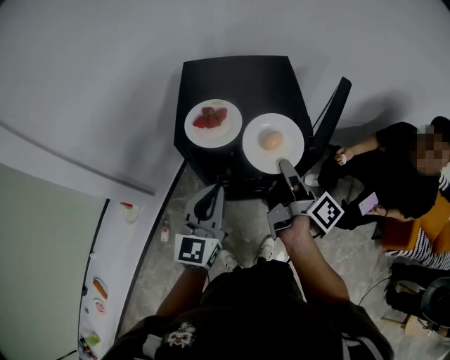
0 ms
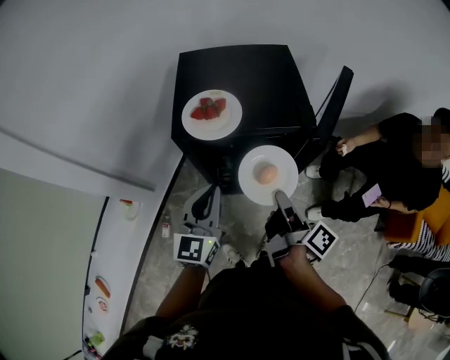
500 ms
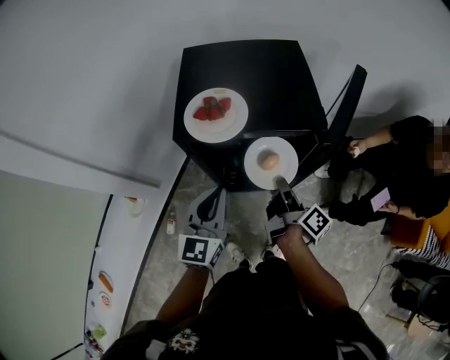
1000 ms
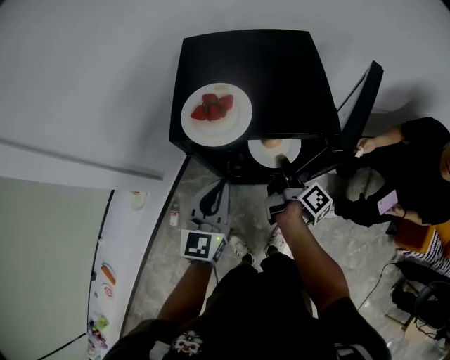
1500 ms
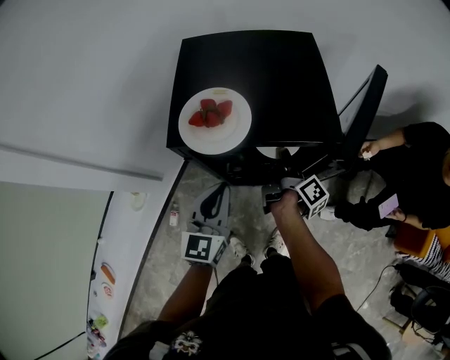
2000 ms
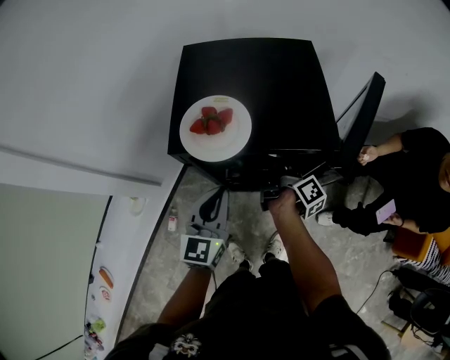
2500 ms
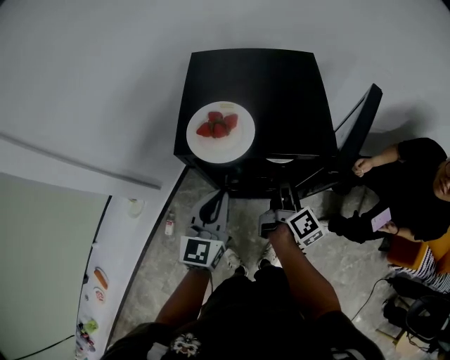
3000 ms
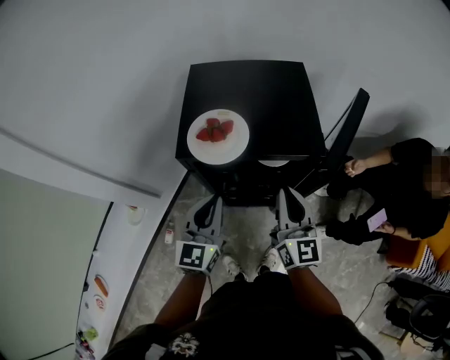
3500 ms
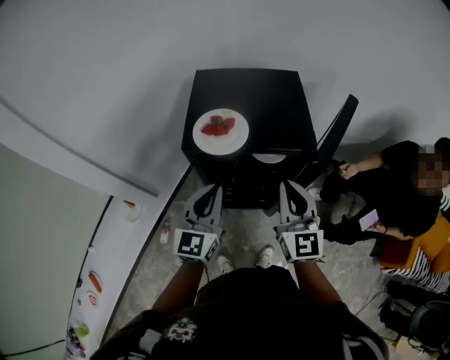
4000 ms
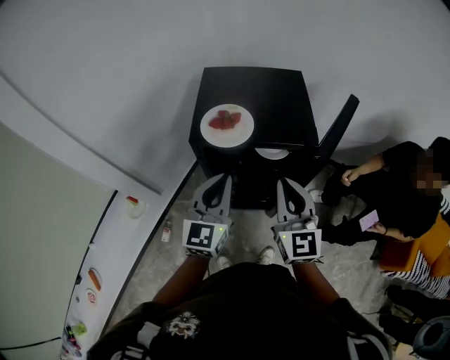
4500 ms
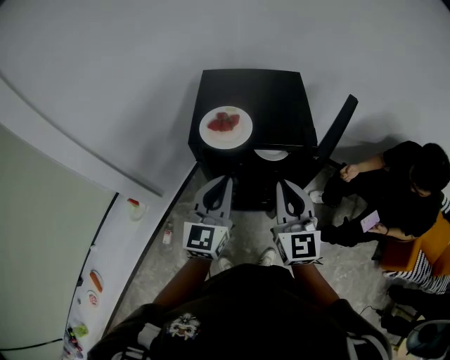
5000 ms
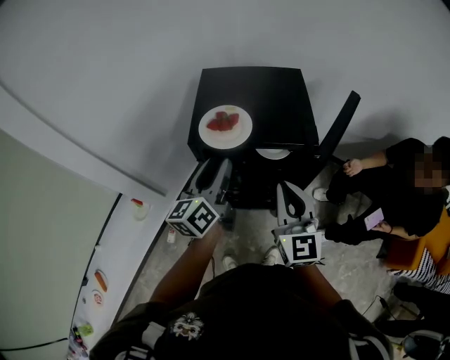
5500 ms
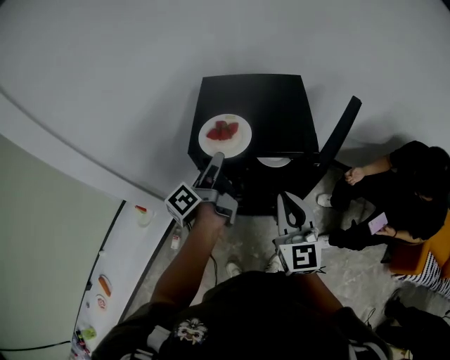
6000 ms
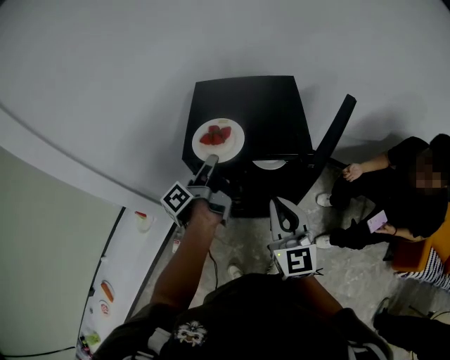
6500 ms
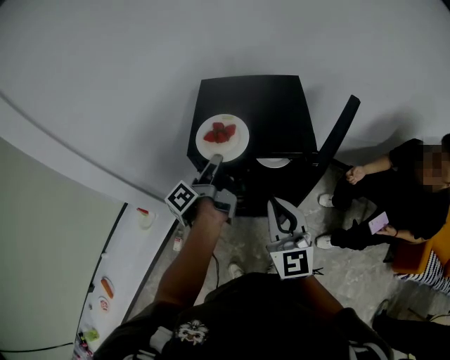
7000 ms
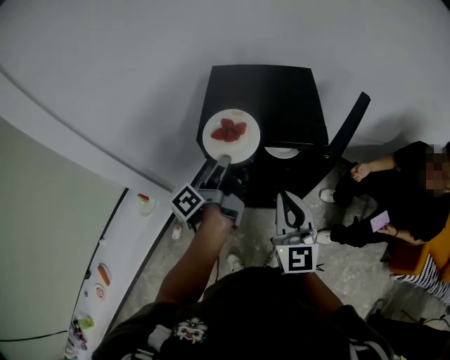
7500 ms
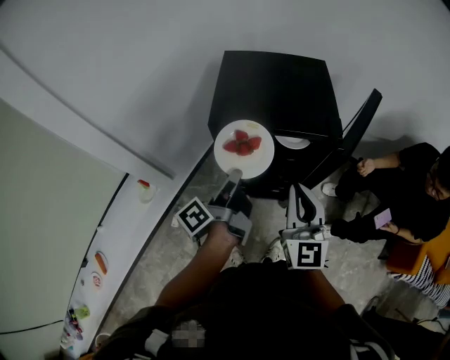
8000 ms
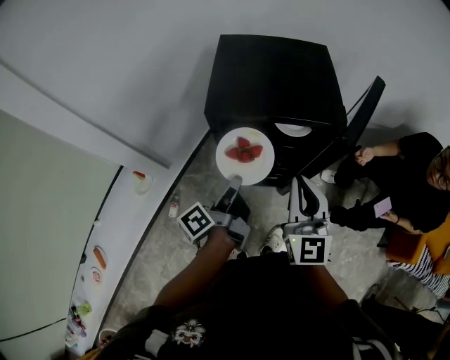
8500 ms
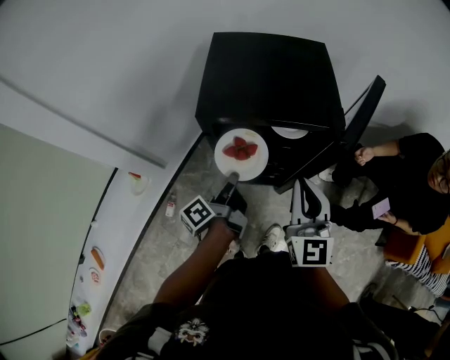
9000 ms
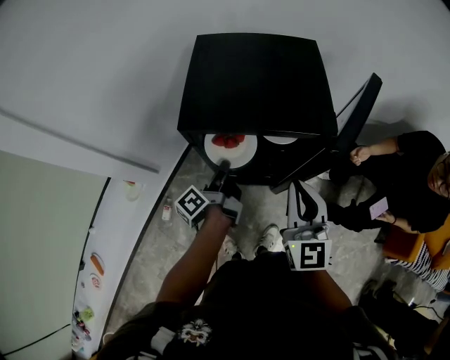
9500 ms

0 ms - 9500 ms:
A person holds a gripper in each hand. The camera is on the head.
0 ms - 2000 ms: The left gripper is displaced downward by approximately 10 cm, while the right gripper heads downward and forward, covering some 20 cm.
2000 ms - 4000 ms: The right gripper shifts about 25 cm upward and backward, rotates around the line of its fingers by about 90 degrees, counterclockwise from behind, and opens and closes again. Meanwhile the left gripper travels upward by some 10 cm.
4000 ms - 5500 ms: The left gripper shifts by some 5 cm, turns by roughly 30 degrees, and opens its fingers.
5500 ms - 7500 ms: The left gripper moves some 5 cm, twists approximately 50 degrees counterclockwise, seen from behind, and closes up.
7500 ms - 9500 ms: The left gripper heads downward, covering about 15 cm.

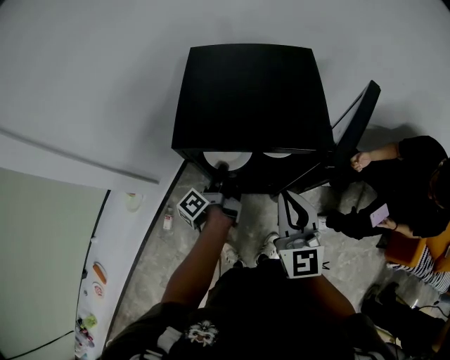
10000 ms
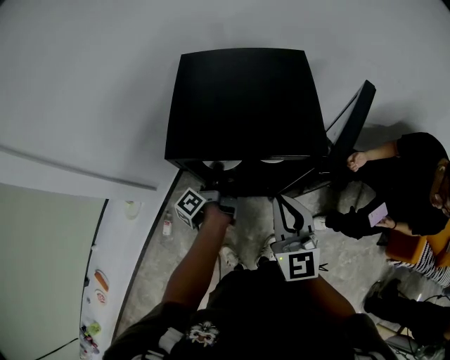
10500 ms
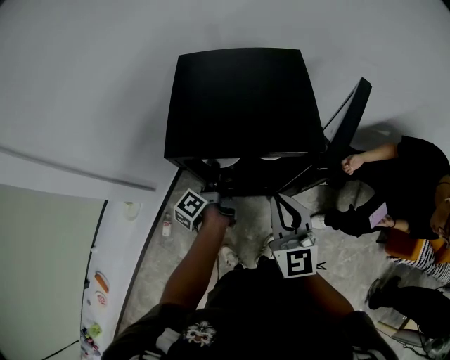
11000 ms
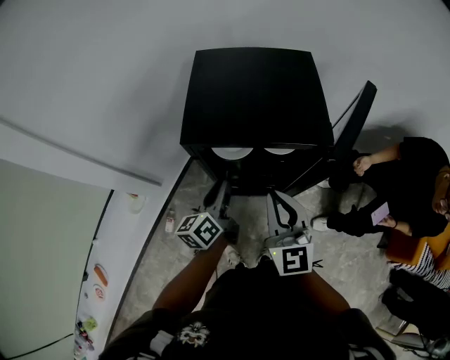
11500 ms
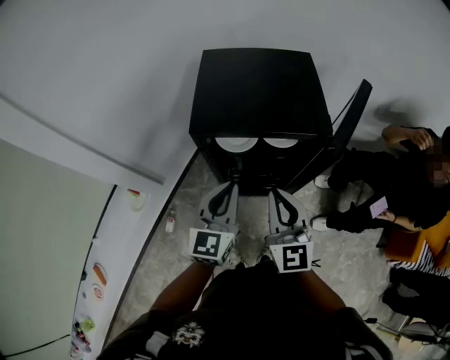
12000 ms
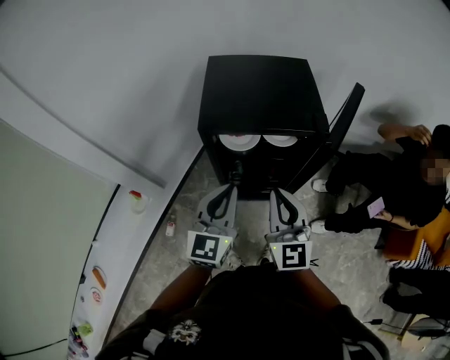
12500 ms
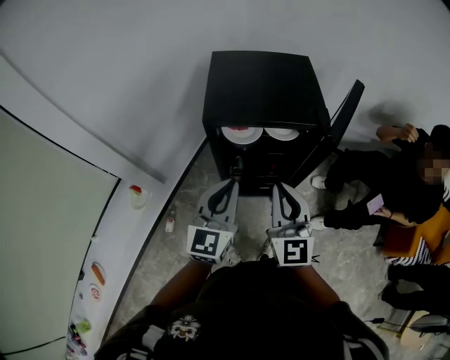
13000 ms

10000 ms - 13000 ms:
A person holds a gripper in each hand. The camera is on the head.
10000 ms - 11500 ms: The left gripper shifts approximately 10 cm backward and upward, and twists some 50 degrees clockwise, seen from behind.
11500 ms - 13000 ms: The left gripper travels upward and backward by roughly 15 cm, and rotates around the line of its fingers by approximately 40 degrees, clockwise from behind, while the right gripper goes roughly 10 cm backward.

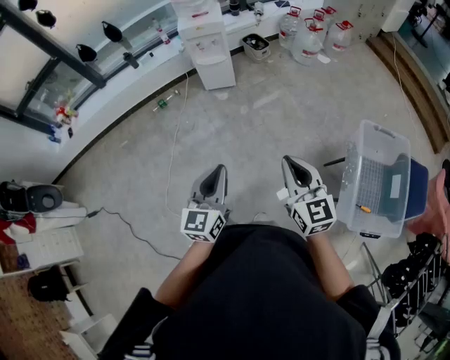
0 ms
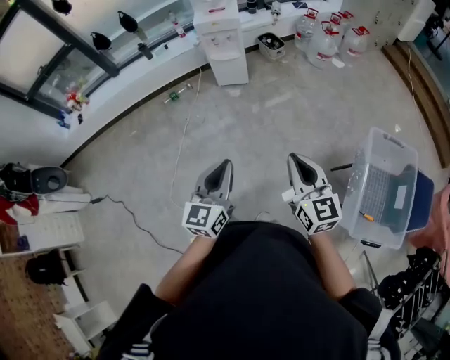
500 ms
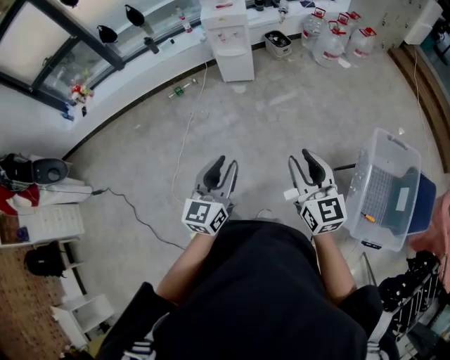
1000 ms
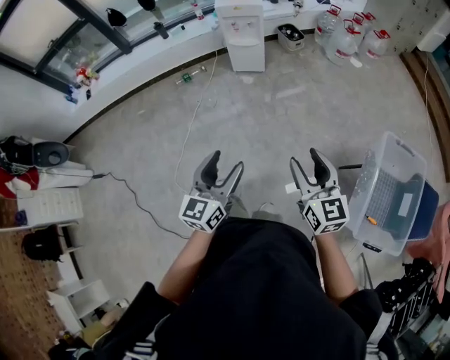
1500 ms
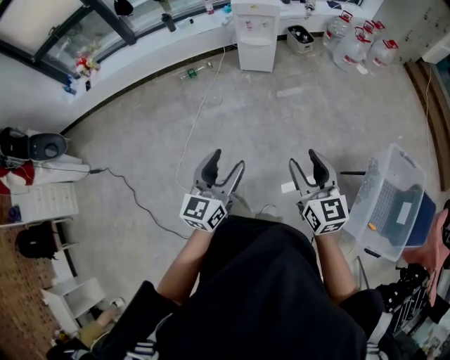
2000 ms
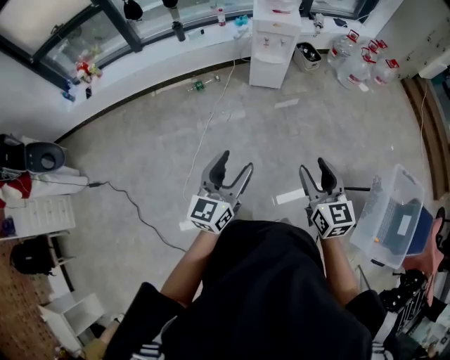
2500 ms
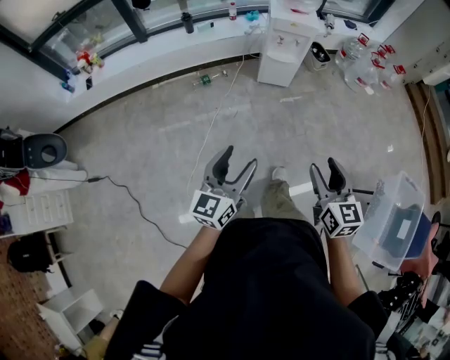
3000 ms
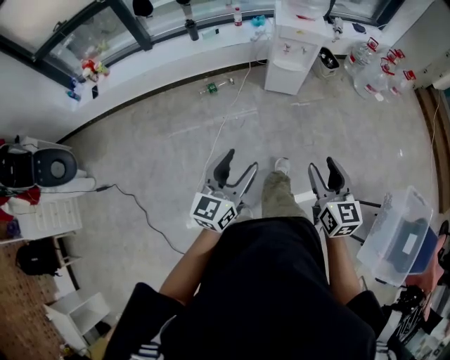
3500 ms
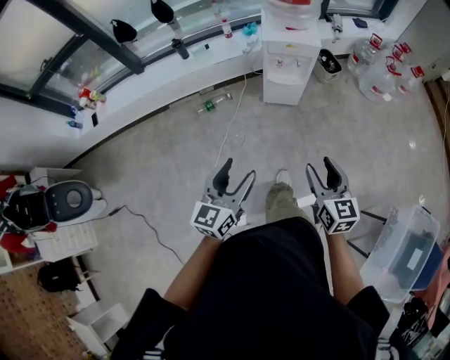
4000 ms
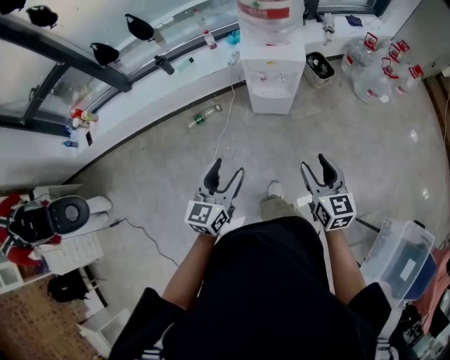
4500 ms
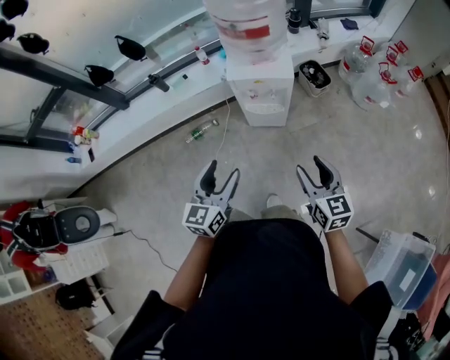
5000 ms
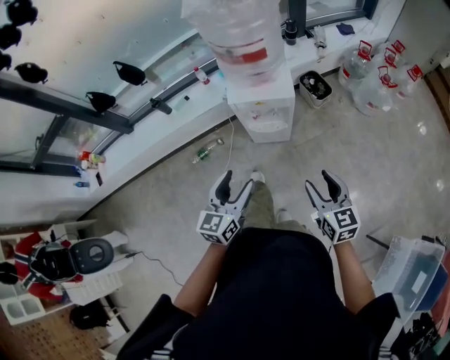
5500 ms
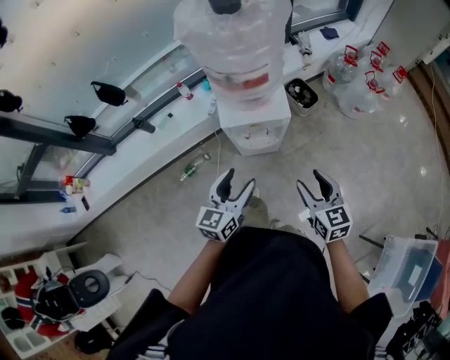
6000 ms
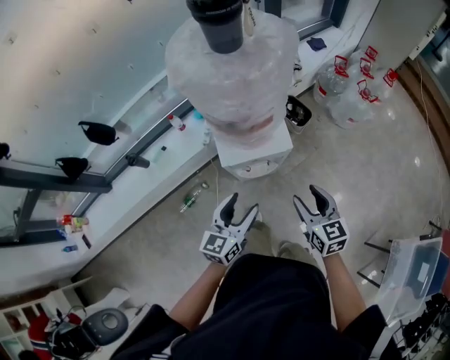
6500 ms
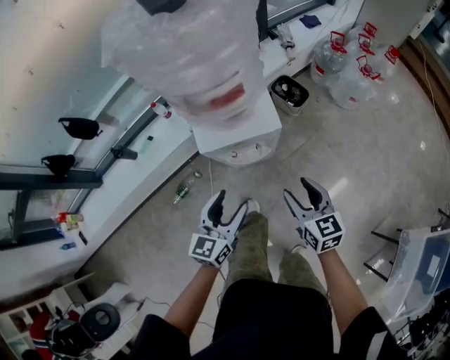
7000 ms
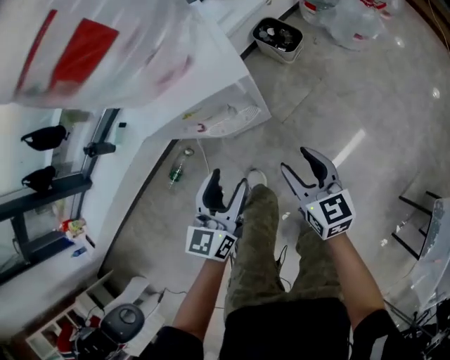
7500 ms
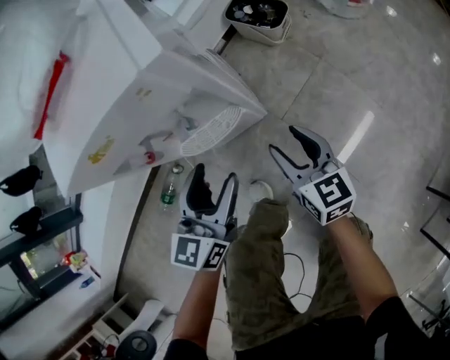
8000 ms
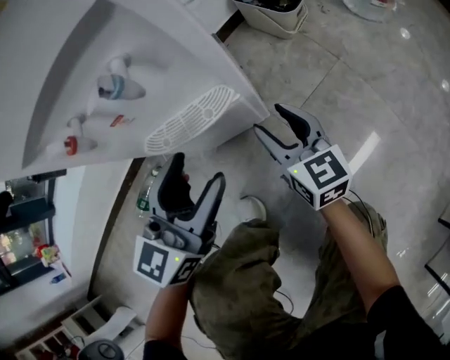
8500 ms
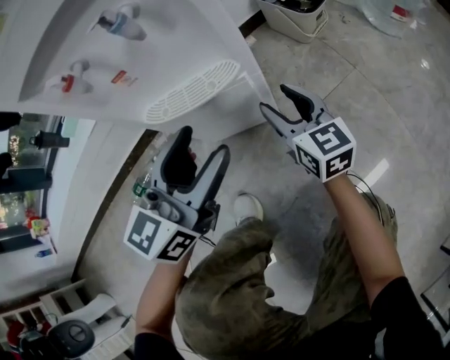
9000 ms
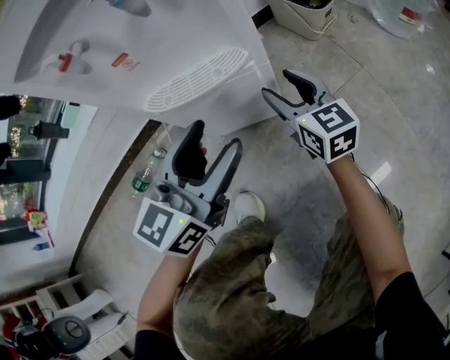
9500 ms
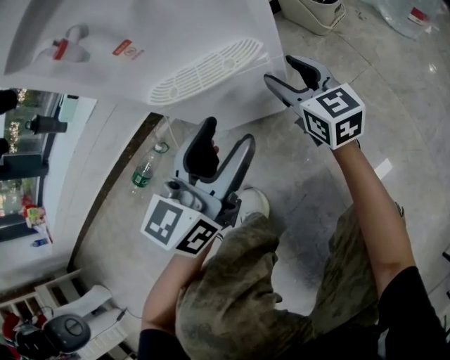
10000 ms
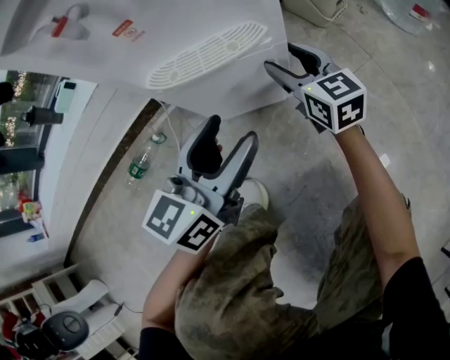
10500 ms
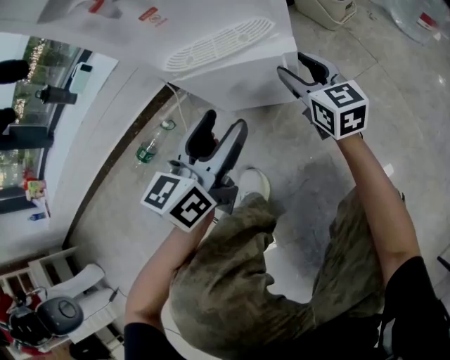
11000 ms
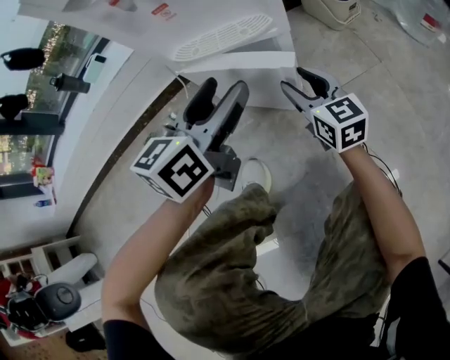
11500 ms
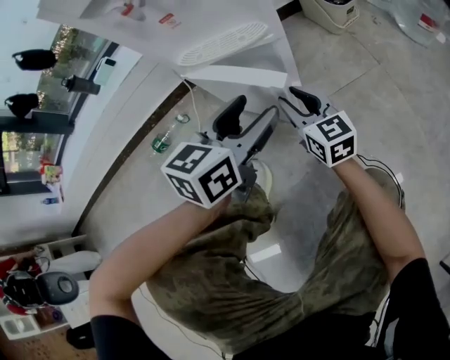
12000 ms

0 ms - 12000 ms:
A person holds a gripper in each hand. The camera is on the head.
0 ms - 2000 ms: The two grippers go roughly 10 cm to the left. The left gripper opens up; the right gripper opens.
2000 ms - 4000 ms: The left gripper is displaced forward and to the left by roughly 35 cm; the right gripper travels forward by some 35 cm.
4000 ms - 6000 ms: The two grippers go roughly 35 cm forward.
6000 ms - 8000 ms: Both grippers move downward, roughly 40 cm.
8000 ms - 10000 ms: The left gripper goes about 15 cm downward, while the right gripper moves downward and forward, some 20 cm, and rotates roughly 20 degrees.
10000 ms - 12000 ms: The left gripper goes some 5 cm backward; the right gripper heads backward, covering roughly 15 cm, and closes up.

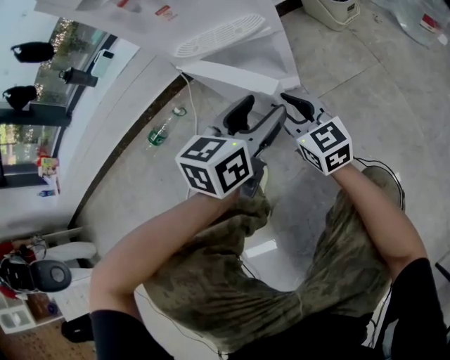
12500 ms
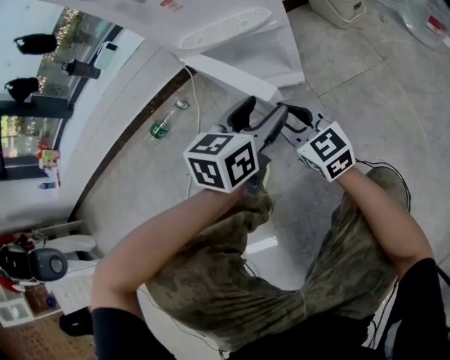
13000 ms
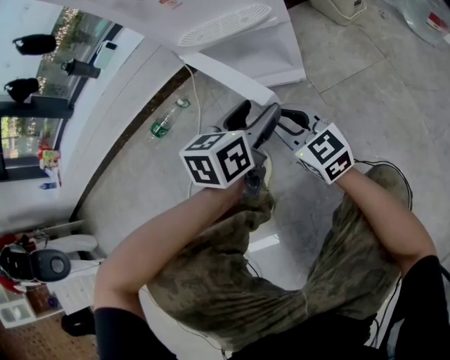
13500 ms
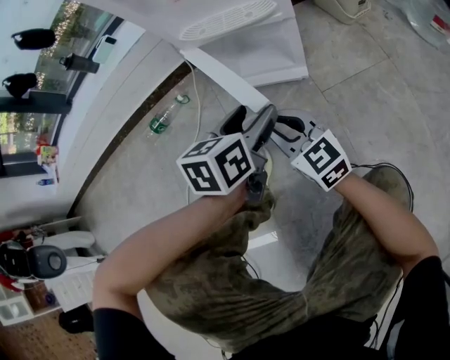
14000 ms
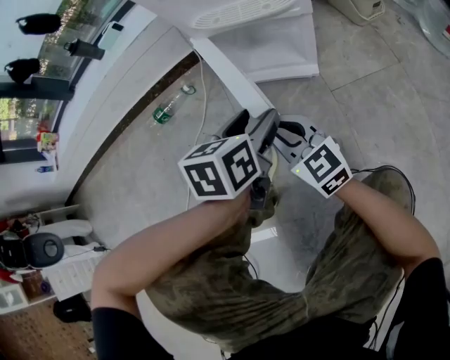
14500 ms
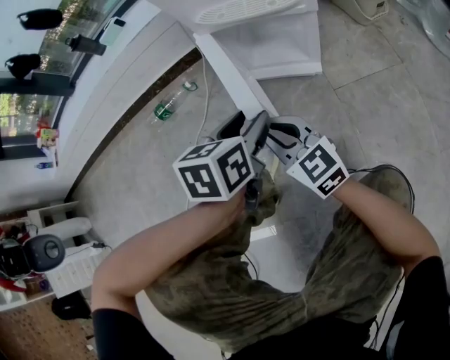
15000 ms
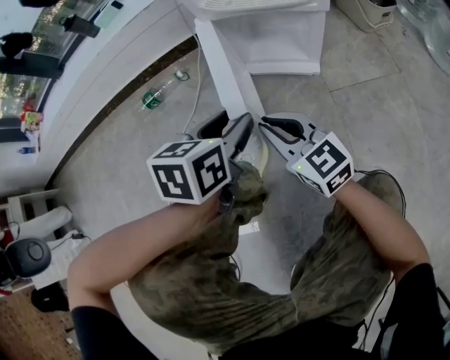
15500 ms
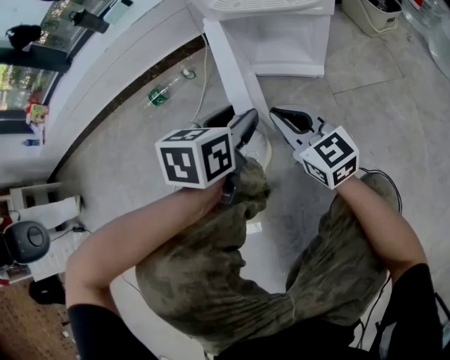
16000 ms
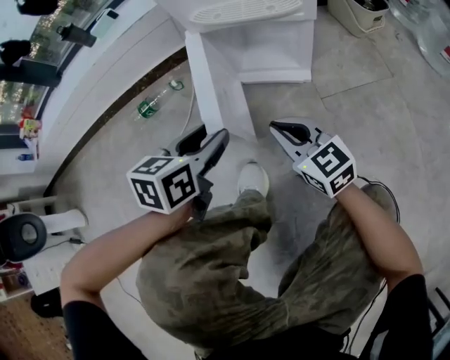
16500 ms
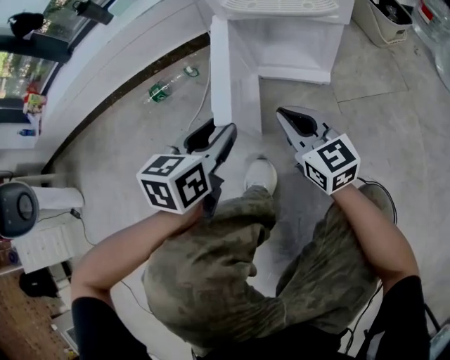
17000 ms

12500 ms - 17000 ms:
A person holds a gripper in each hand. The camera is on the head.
12500 ms - 14500 ms: The right gripper moves to the left and backward, approximately 10 cm. Meanwhile the left gripper goes roughly 10 cm to the left, and changes its angle by about 30 degrees.
14500 ms - 17000 ms: The left gripper shifts approximately 10 cm to the left.
